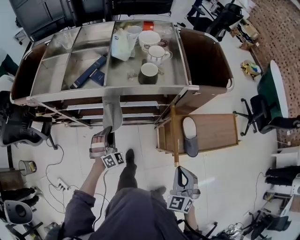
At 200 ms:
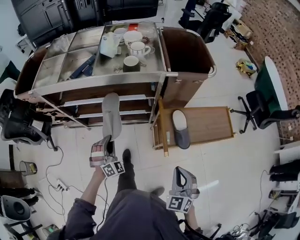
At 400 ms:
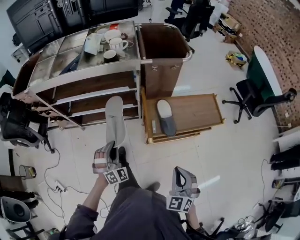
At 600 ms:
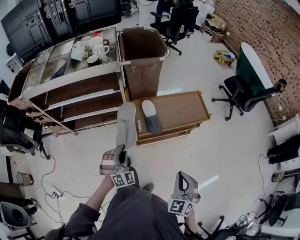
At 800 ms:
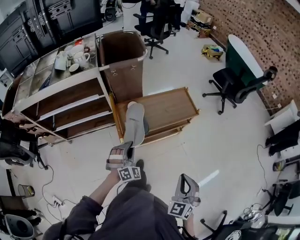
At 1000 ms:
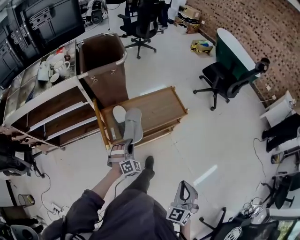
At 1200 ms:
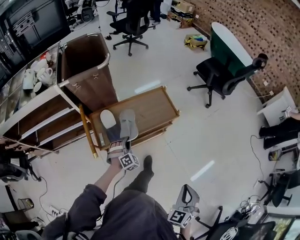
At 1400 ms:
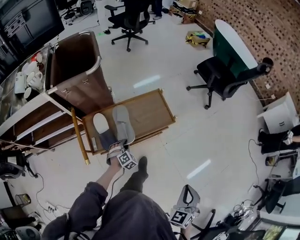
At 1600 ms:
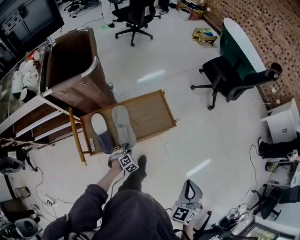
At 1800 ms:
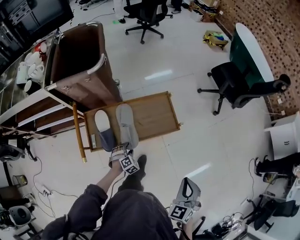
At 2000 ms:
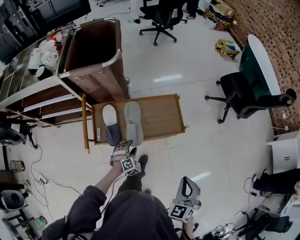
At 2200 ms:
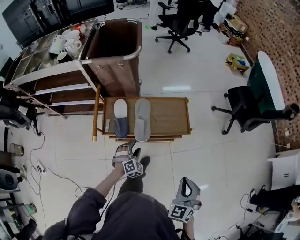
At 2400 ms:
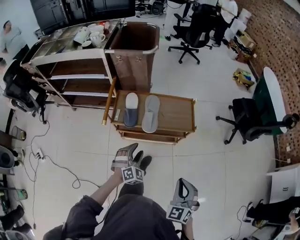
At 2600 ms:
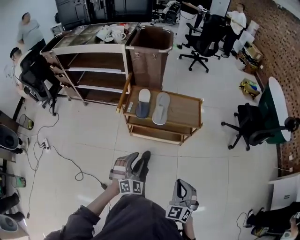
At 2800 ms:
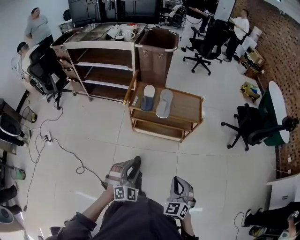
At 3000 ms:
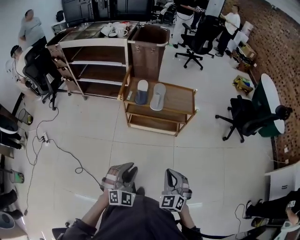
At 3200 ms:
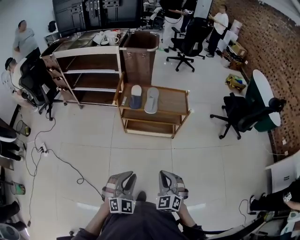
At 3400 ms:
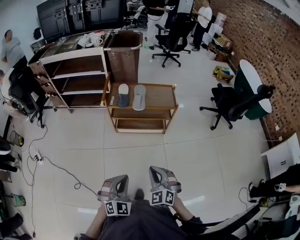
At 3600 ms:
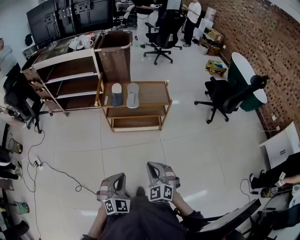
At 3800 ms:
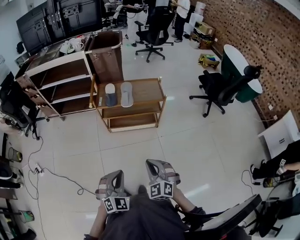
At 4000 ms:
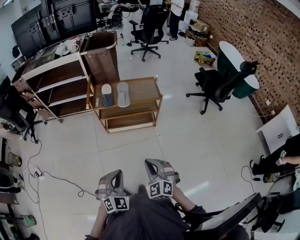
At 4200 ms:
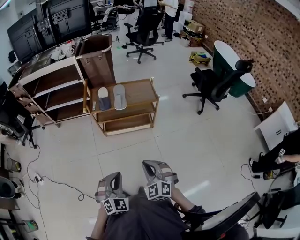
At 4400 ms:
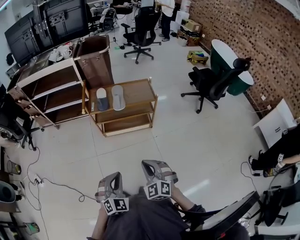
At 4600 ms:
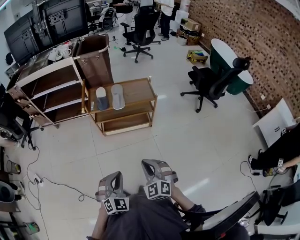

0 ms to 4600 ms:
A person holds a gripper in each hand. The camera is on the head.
0 ms to 1600 ms: The pair of grippers is taken approximately 60 cm. The right gripper swivels some 30 degrees. Meanwhile the left gripper angles its fingers downward, by about 40 degrees, and opens up.
1600 ms to 3000 ms: The right gripper shifts by some 30 cm, and swivels about 50 degrees. Meanwhile the left gripper shifts by approximately 60 cm, and tips its fingers upward by about 40 degrees.
3000 ms to 4600 ms: The left gripper goes roughly 5 cm backward, and closes its fingers.

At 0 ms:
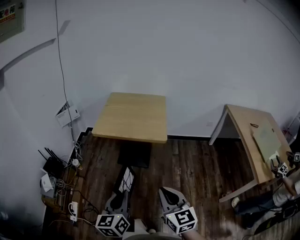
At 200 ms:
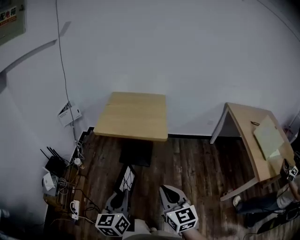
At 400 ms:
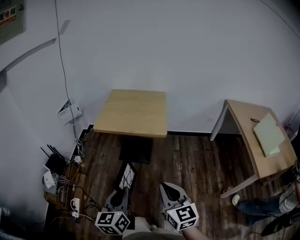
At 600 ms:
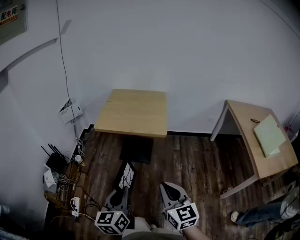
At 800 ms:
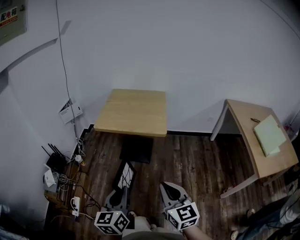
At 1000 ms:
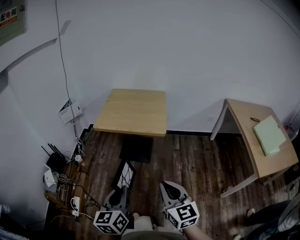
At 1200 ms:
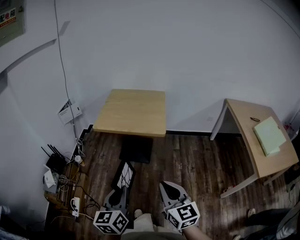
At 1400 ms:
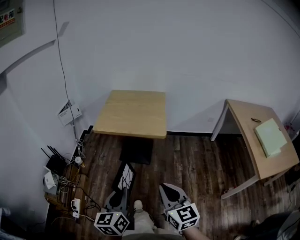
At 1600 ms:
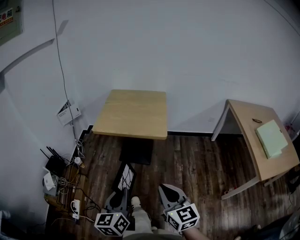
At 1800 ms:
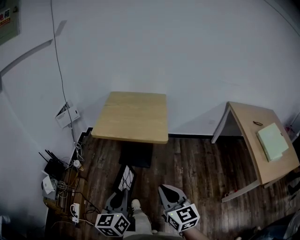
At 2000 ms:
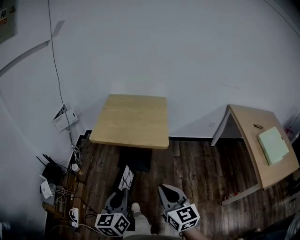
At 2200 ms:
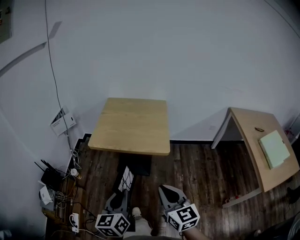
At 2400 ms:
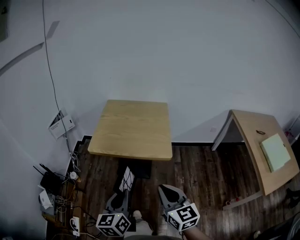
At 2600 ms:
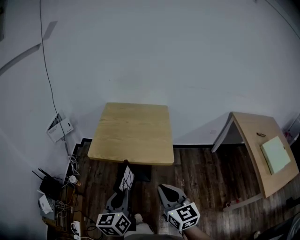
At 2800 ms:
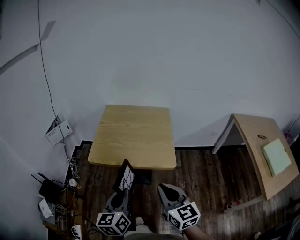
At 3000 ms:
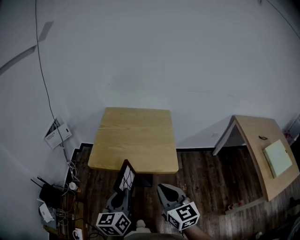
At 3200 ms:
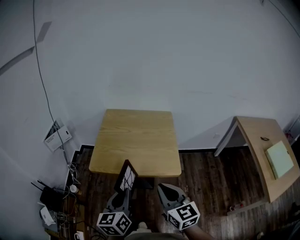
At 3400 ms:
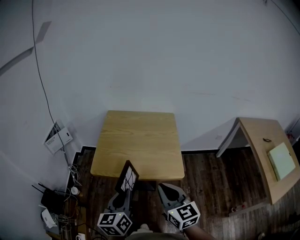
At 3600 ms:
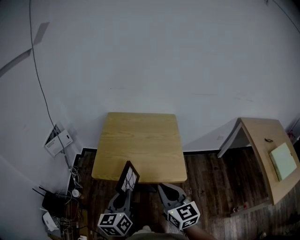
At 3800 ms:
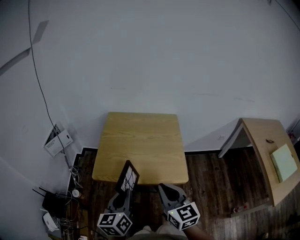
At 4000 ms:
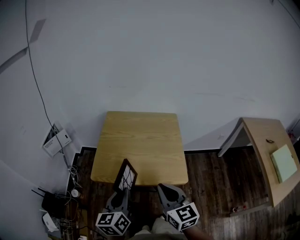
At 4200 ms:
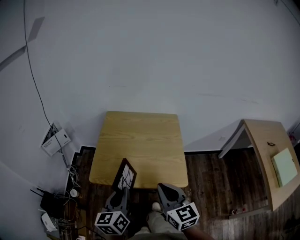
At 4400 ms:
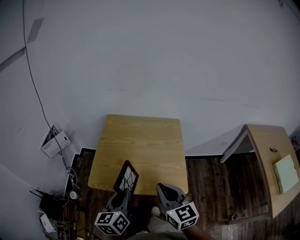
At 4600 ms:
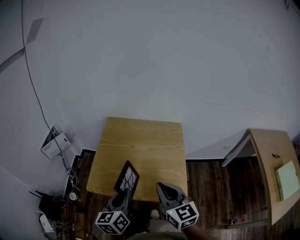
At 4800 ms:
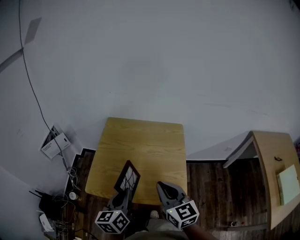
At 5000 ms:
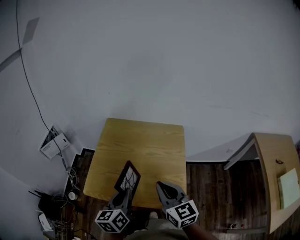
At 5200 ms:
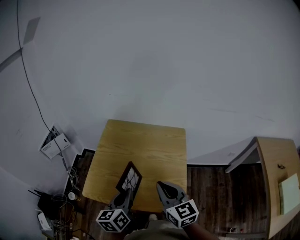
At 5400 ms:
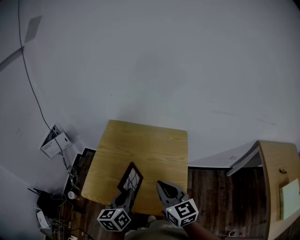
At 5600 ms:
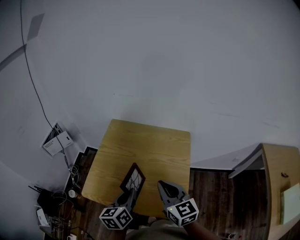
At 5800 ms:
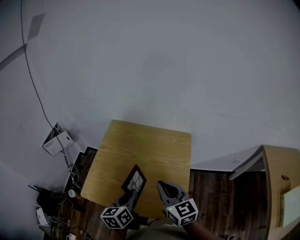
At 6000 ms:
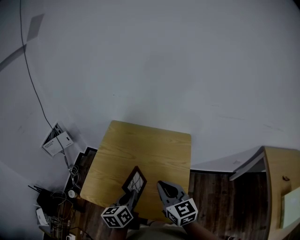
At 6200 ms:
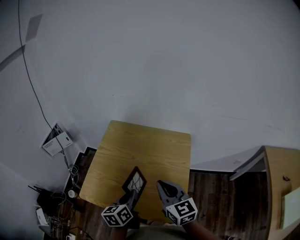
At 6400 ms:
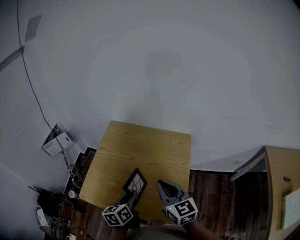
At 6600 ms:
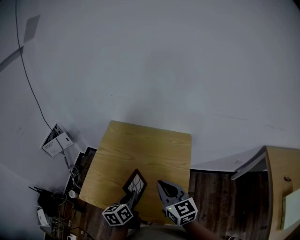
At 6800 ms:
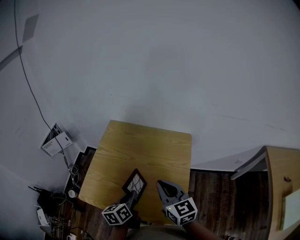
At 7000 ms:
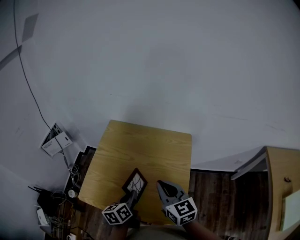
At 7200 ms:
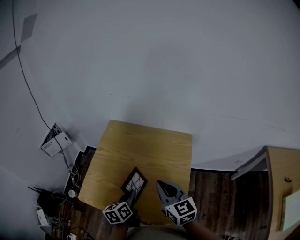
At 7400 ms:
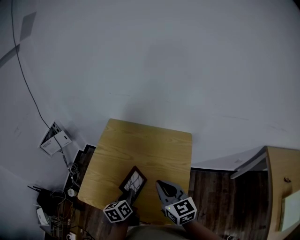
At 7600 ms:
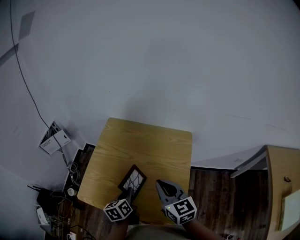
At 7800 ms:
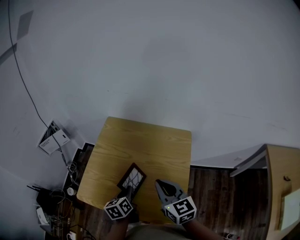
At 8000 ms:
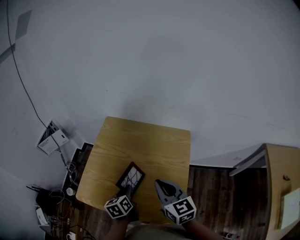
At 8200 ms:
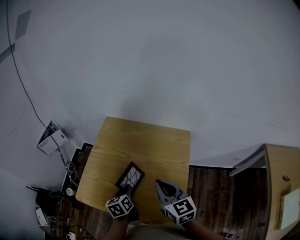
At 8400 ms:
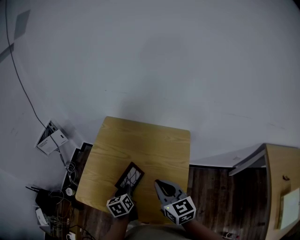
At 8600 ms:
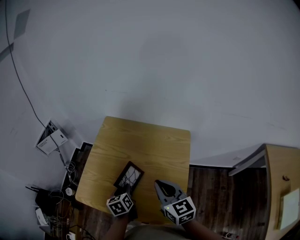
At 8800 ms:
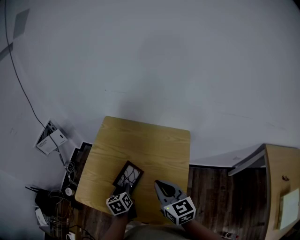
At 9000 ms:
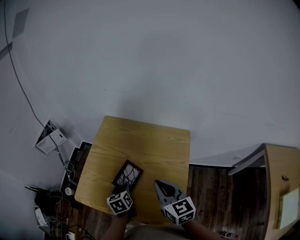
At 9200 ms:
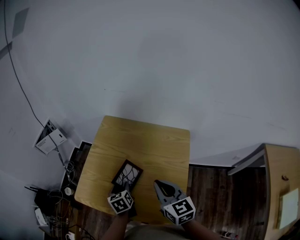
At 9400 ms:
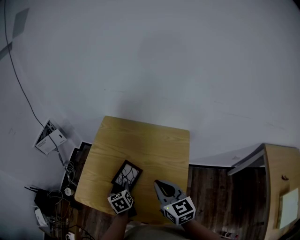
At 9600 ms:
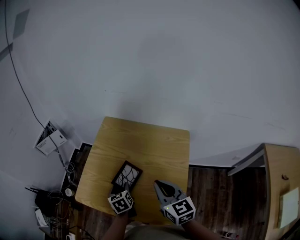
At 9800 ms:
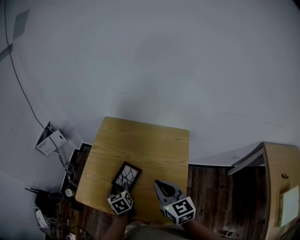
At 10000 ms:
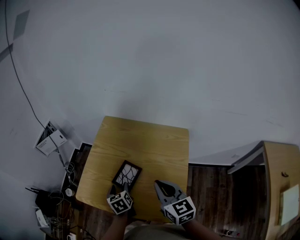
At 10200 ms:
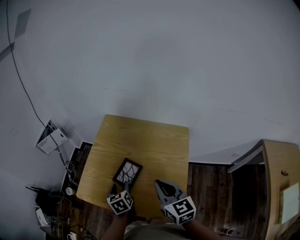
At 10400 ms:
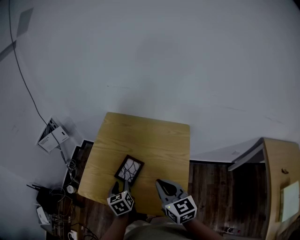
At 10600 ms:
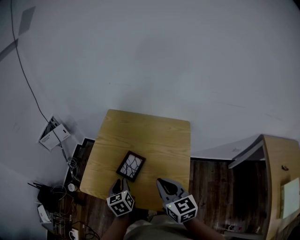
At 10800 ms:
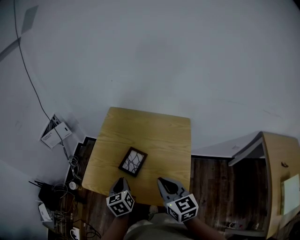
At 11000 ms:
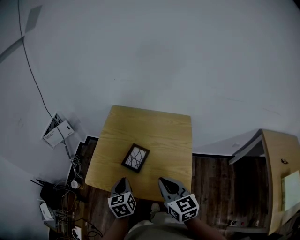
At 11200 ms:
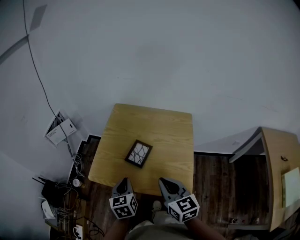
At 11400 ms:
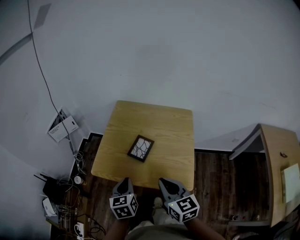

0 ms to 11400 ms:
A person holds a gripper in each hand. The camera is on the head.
0 ms to 1400 ms: The grippers make only small movements.
1400 ms to 2800 ms: The grippers both shift forward by about 25 cm.
2800 ms to 4200 ms: The two grippers go roughly 15 cm forward.
4200 ms to 5600 ms: The left gripper is displaced forward, to the right and downward by some 20 cm. The right gripper is displaced forward by roughly 20 cm.
5600 ms to 7200 ms: The left gripper moves downward, about 10 cm; the right gripper changes place by approximately 5 cm.
7200 ms to 8600 ms: The left gripper moves downward, some 5 cm, and opens its fingers.
8600 ms to 10000 ms: The left gripper opens.
10000 ms to 11400 ms: The right gripper heads backward and to the left, covering about 15 cm. The left gripper heads backward, upward and to the left, covering about 20 cm, and closes its fingers.

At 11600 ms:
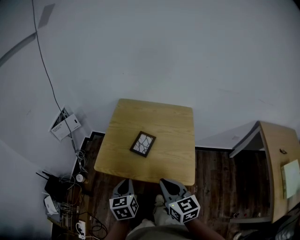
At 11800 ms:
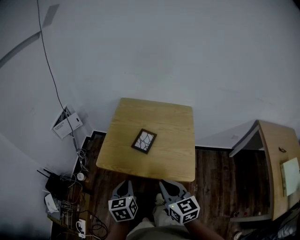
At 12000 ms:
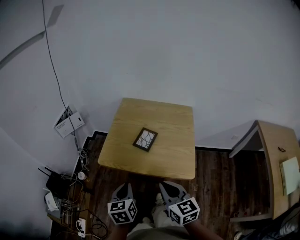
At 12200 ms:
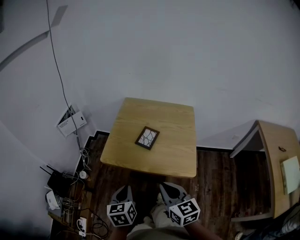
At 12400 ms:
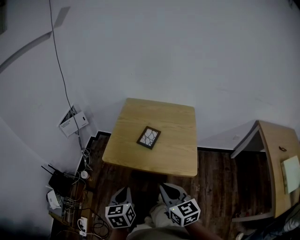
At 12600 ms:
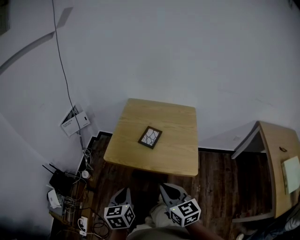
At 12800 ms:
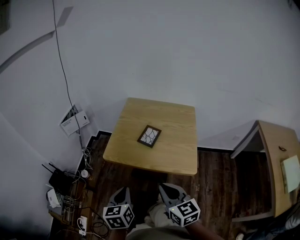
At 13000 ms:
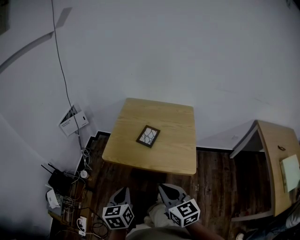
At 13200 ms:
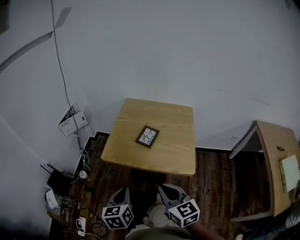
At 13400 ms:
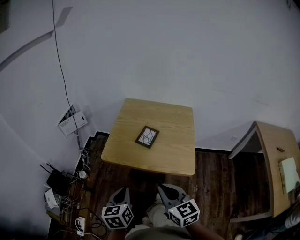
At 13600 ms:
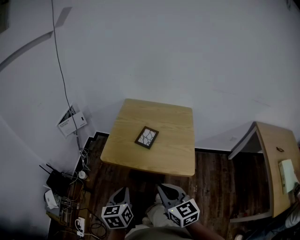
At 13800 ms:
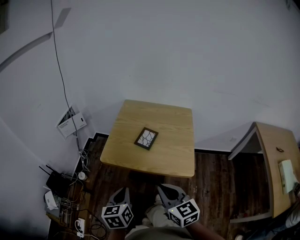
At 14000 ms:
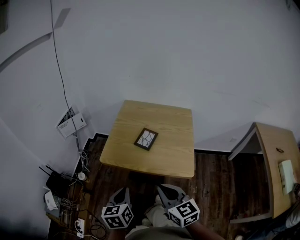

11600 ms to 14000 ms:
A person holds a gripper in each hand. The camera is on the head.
11600 ms to 12800 ms: Both grippers travel together backward and to the left, about 10 cm.
12800 ms to 14000 ms: The grippers make only small movements.

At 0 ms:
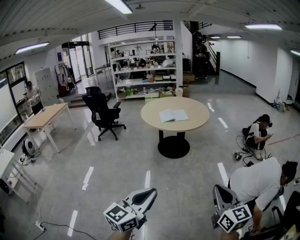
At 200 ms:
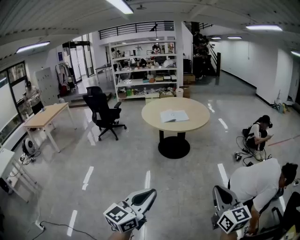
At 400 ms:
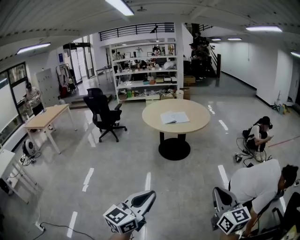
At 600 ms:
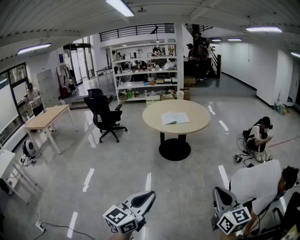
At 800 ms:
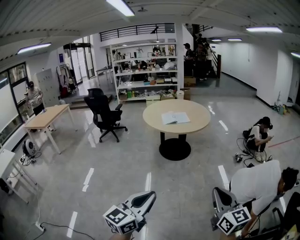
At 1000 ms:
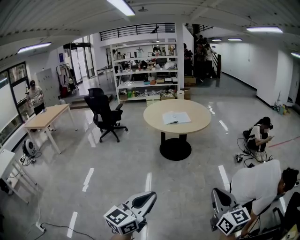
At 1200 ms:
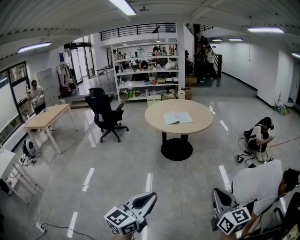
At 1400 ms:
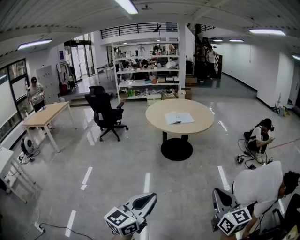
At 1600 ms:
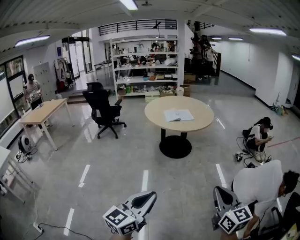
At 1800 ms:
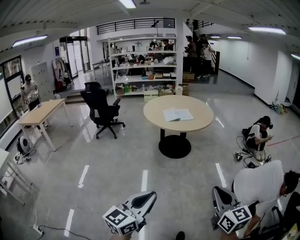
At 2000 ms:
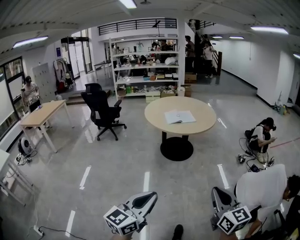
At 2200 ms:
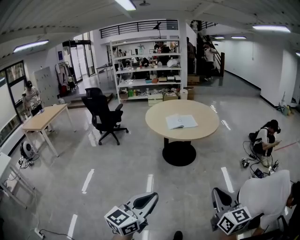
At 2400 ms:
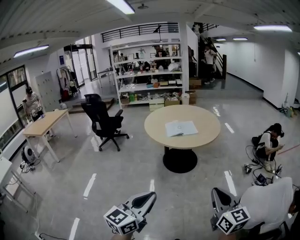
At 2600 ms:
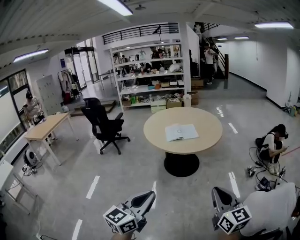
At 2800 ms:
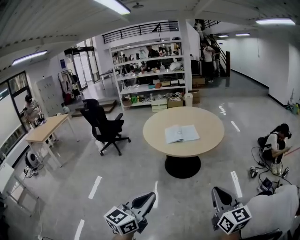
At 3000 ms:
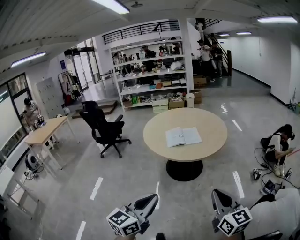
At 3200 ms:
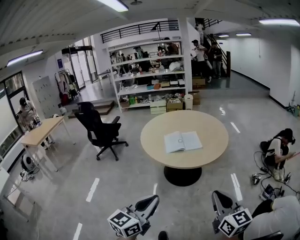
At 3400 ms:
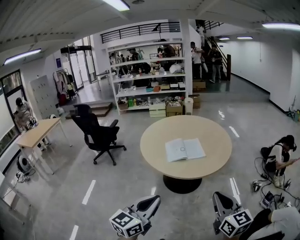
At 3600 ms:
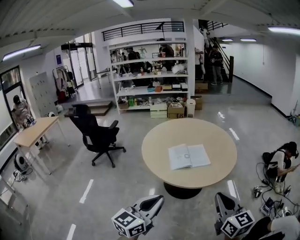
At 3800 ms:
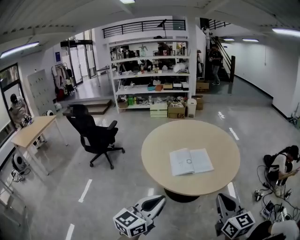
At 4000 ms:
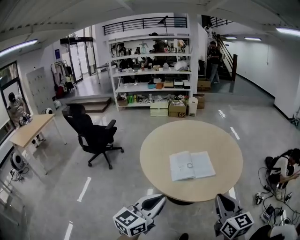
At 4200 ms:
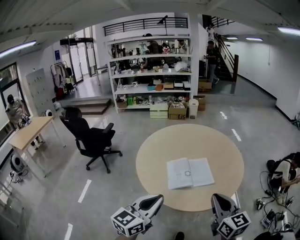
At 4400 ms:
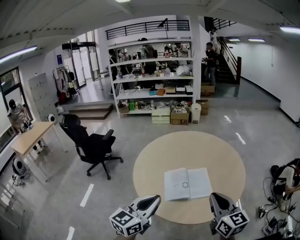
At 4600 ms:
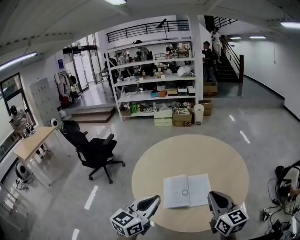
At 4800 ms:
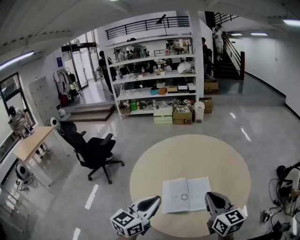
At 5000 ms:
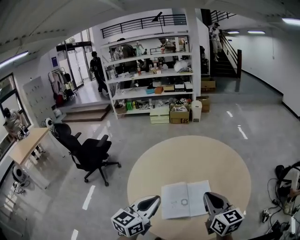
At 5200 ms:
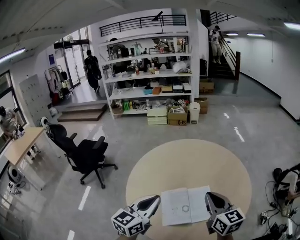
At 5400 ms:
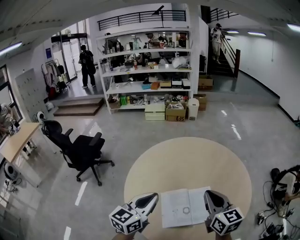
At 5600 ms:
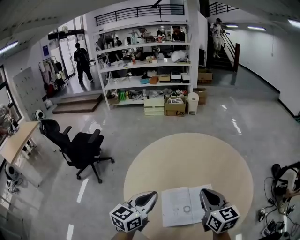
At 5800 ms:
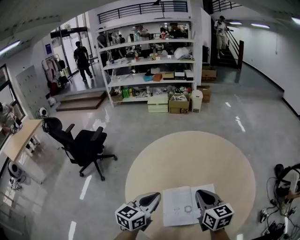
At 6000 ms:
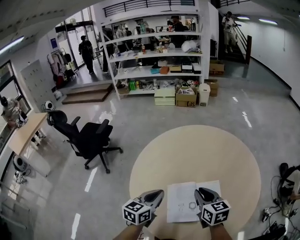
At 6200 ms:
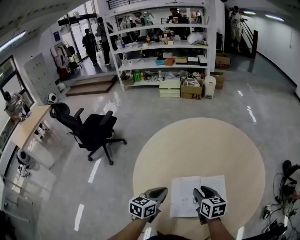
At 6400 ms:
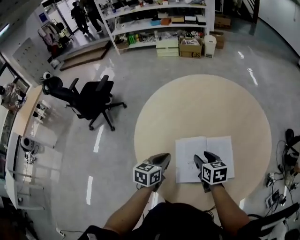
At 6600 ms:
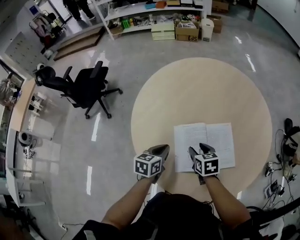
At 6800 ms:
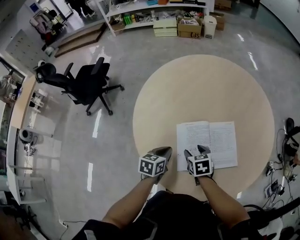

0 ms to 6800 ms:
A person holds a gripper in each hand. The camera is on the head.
0 ms to 1400 ms: The two grippers go roughly 5 cm to the left.
1400 ms to 2800 ms: Both grippers move forward, about 35 cm.
2800 ms to 4000 ms: Both grippers are carried forward, roughly 40 cm.
4000 ms to 5400 ms: Both grippers travel together forward, about 40 cm.
5400 ms to 6800 ms: The grippers both shift downward by about 30 cm. The left gripper angles its fingers downward, by approximately 30 degrees. Meanwhile the right gripper points its fingers some 40 degrees further downward, and opens its fingers.